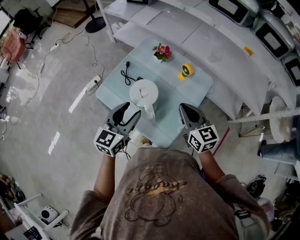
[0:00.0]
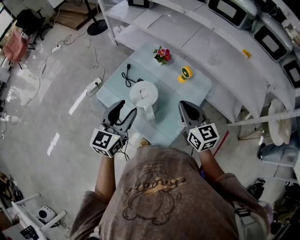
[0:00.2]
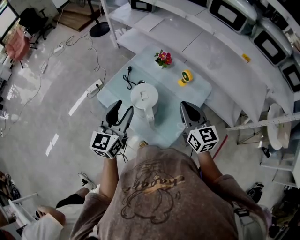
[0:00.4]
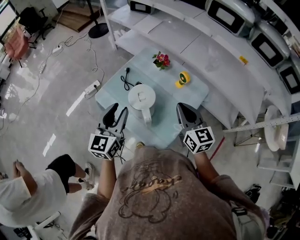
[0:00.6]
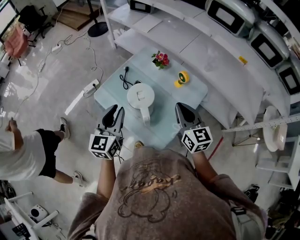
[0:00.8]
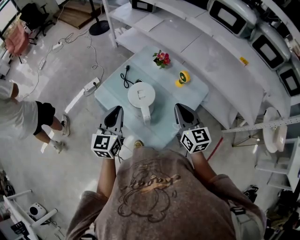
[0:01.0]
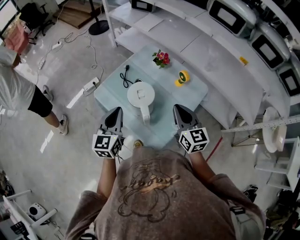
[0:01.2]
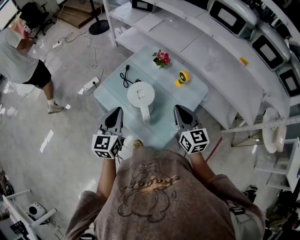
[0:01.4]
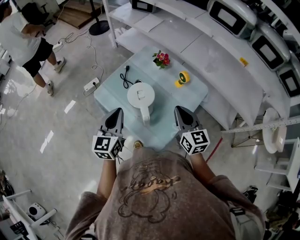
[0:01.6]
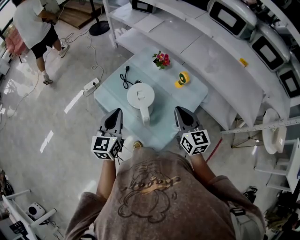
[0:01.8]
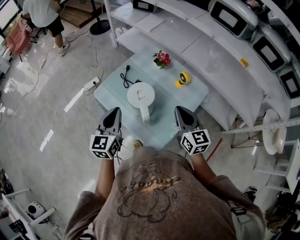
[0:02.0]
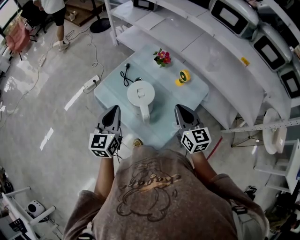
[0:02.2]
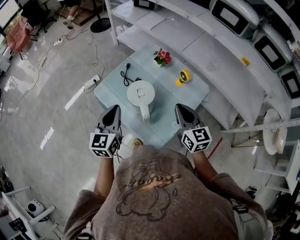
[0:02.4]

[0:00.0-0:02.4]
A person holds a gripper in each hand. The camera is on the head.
0:00.0 to 0:01.2: The left gripper changes place by roughly 5 cm, rotates some 20 degrees, and closes its fingers.
0:01.2 to 0:02.4: Both grippers stay put.

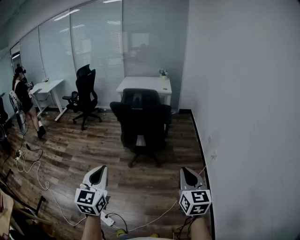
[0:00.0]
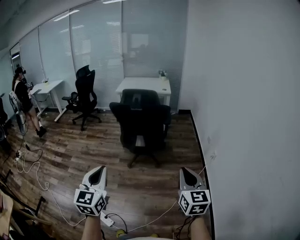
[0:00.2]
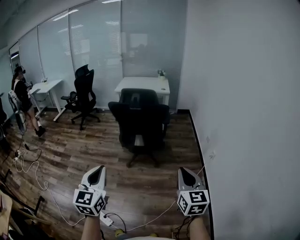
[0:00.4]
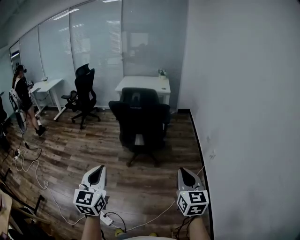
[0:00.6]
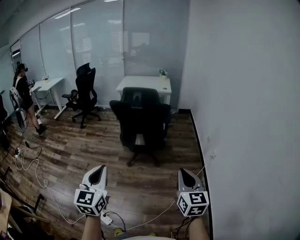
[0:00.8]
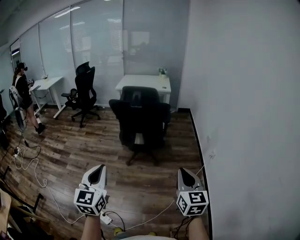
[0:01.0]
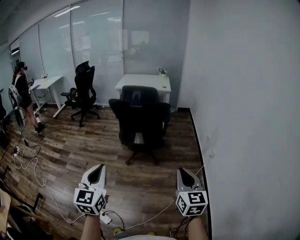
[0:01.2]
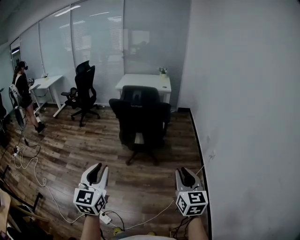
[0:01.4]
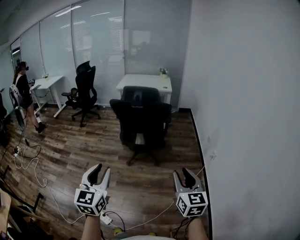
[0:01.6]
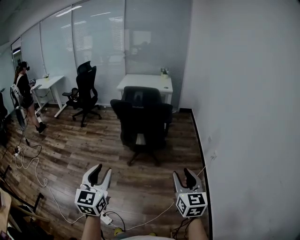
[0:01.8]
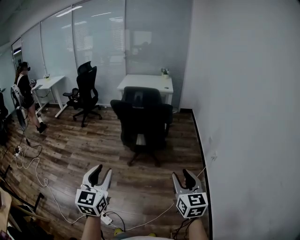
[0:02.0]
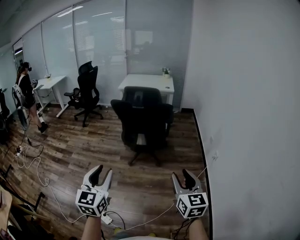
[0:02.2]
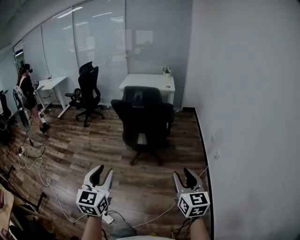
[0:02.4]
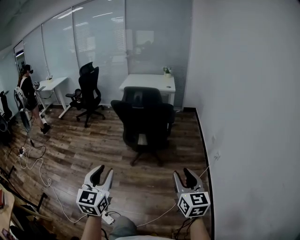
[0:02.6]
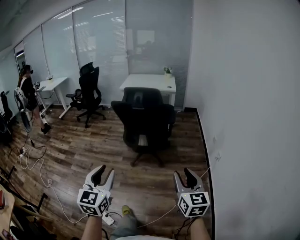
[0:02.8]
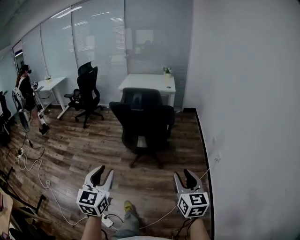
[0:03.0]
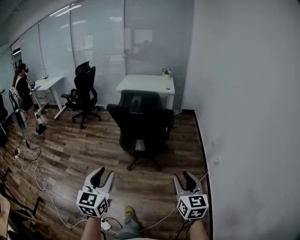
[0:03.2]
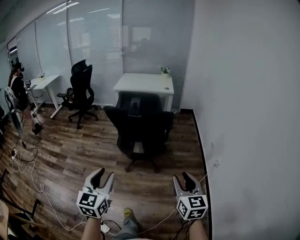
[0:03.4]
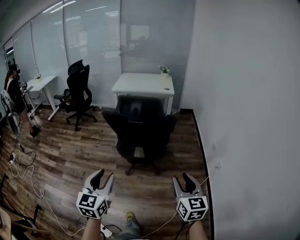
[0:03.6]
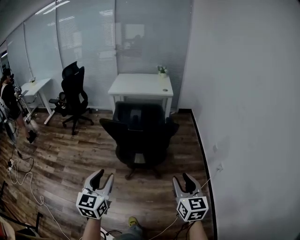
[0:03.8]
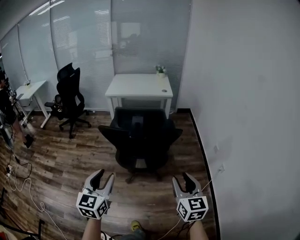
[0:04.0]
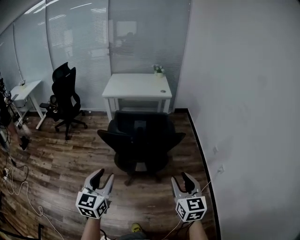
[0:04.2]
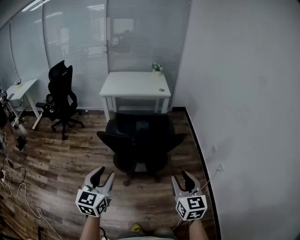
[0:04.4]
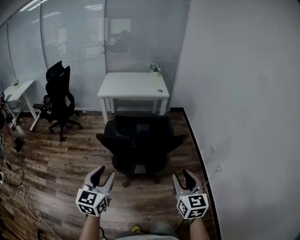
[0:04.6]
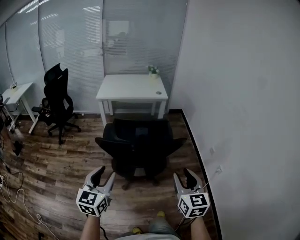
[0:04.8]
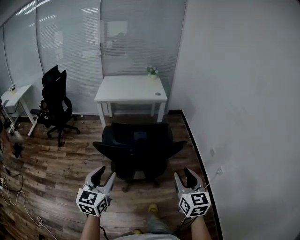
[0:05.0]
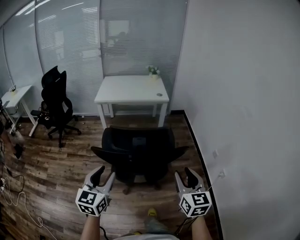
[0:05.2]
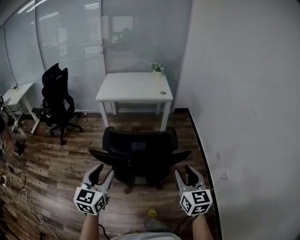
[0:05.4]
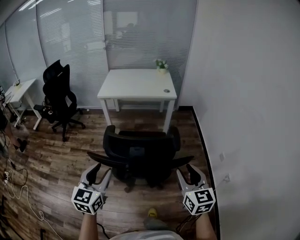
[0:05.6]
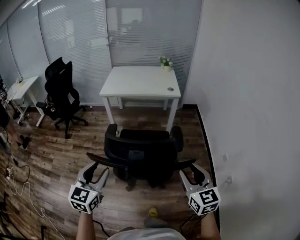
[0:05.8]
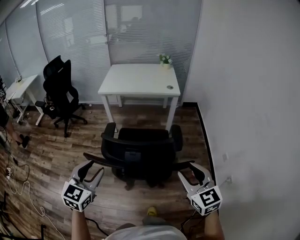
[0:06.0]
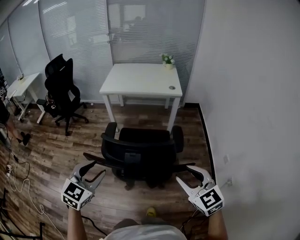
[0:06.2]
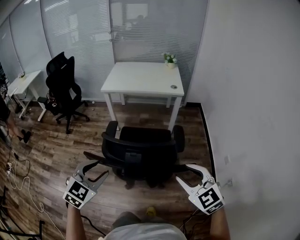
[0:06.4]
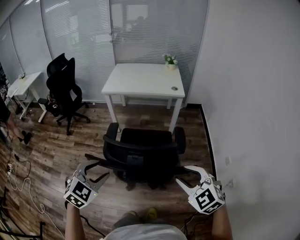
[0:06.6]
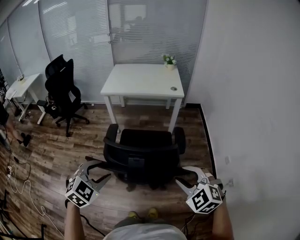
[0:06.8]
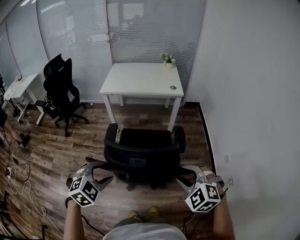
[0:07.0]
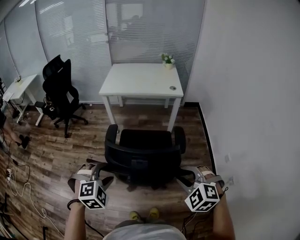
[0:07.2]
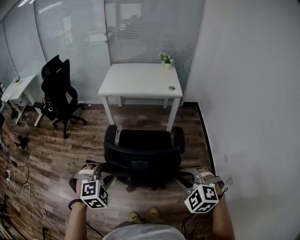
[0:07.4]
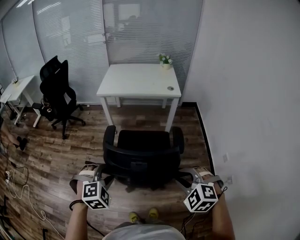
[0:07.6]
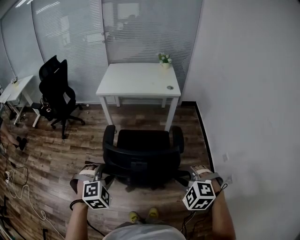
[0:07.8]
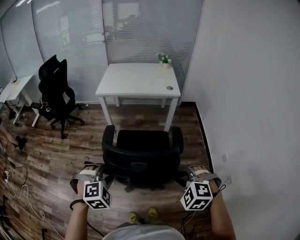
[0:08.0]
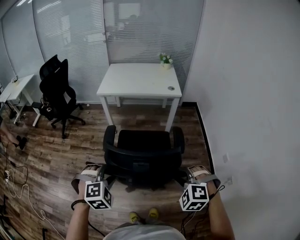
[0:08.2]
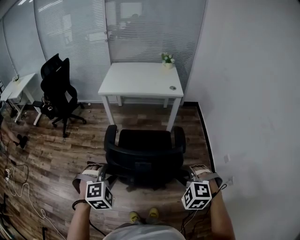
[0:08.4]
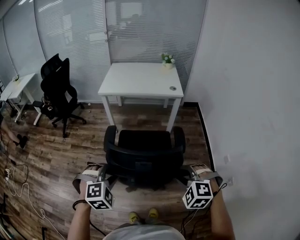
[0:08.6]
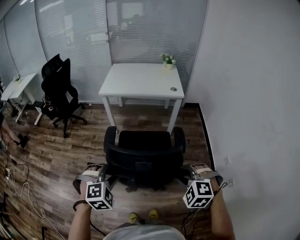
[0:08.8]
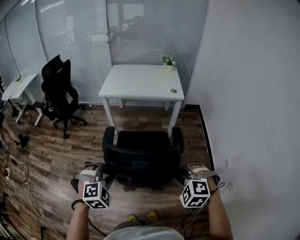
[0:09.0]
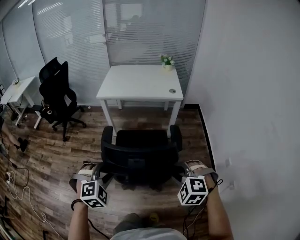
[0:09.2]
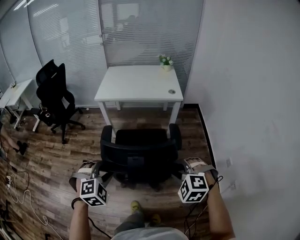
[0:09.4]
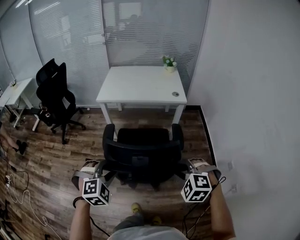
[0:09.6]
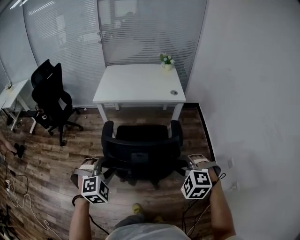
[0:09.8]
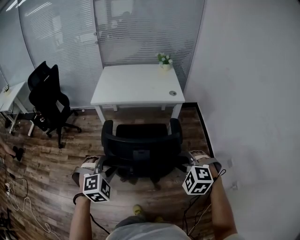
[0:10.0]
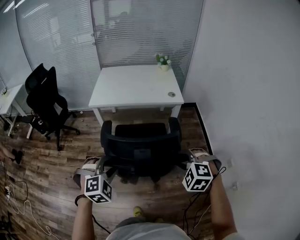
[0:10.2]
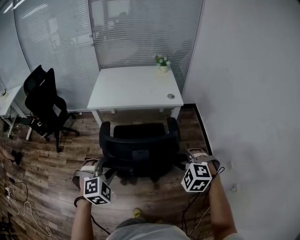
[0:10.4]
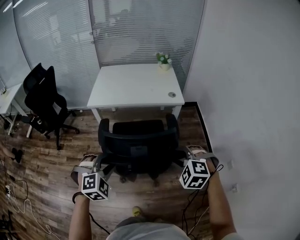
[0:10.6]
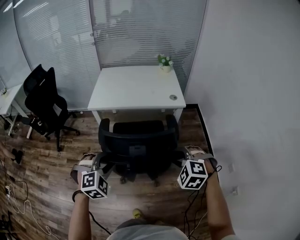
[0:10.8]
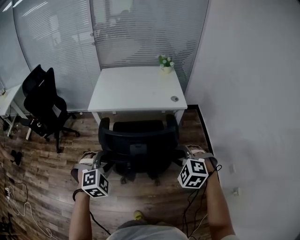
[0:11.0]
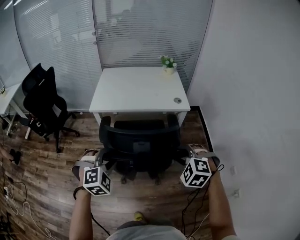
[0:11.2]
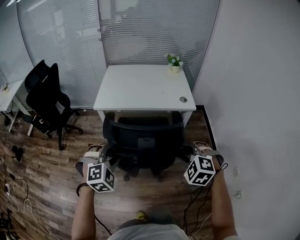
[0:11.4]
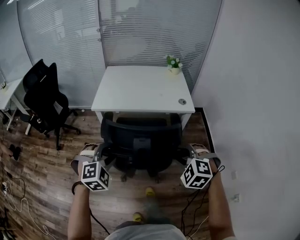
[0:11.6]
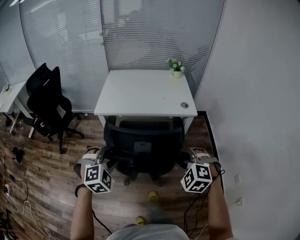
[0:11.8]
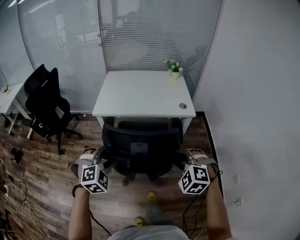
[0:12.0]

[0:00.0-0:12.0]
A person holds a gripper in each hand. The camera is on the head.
0:00.0 to 0:01.6: The left gripper opens up. The right gripper opens up.
0:01.6 to 0:03.0: The two grippers go some 5 cm forward.
0:03.0 to 0:04.4: The two grippers travel together, forward, some 40 cm.
0:04.4 to 0:06.0: The two grippers go some 25 cm forward. The right gripper swivels roughly 20 degrees.
0:06.0 to 0:07.6: The grippers both shift downward by roughly 5 cm. The left gripper twists about 50 degrees clockwise, seen from behind. The right gripper tilts its fingers about 30 degrees downward.
0:07.6 to 0:09.0: The right gripper shifts about 5 cm forward.
0:09.0 to 0:10.4: The grippers both shift forward by roughly 25 cm.
0:10.4 to 0:12.0: The left gripper heads forward, covering about 15 cm; the right gripper heads forward and to the left, covering some 15 cm.

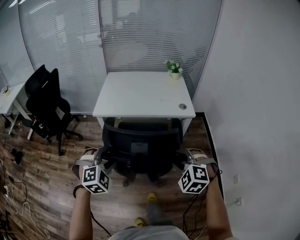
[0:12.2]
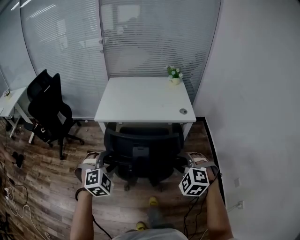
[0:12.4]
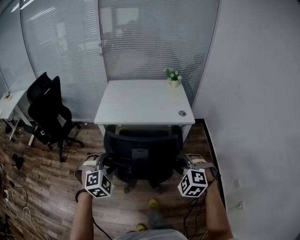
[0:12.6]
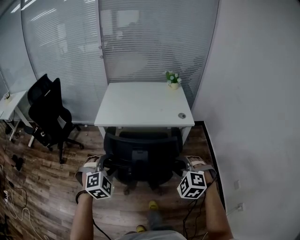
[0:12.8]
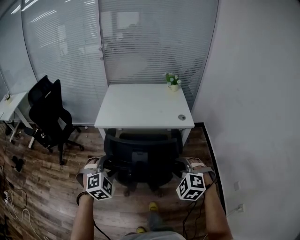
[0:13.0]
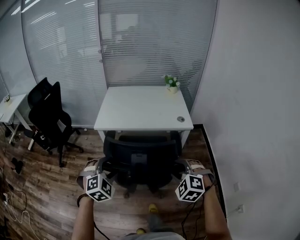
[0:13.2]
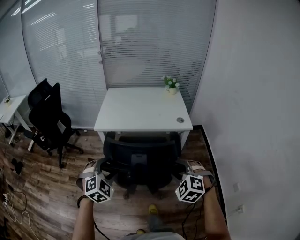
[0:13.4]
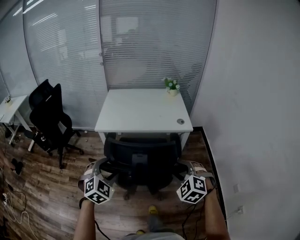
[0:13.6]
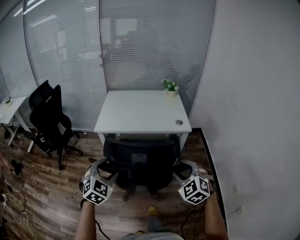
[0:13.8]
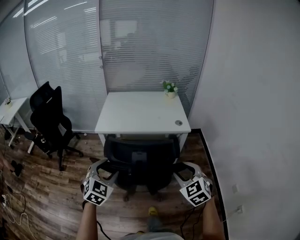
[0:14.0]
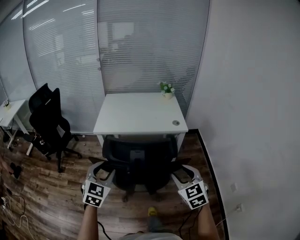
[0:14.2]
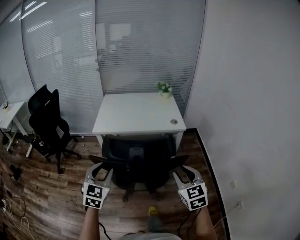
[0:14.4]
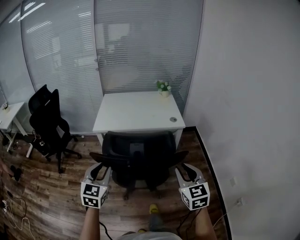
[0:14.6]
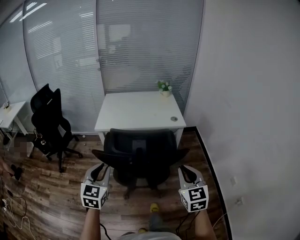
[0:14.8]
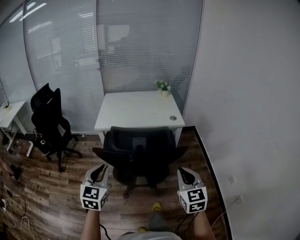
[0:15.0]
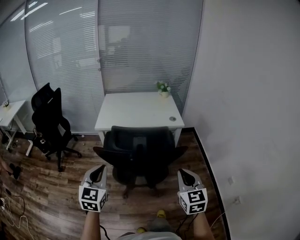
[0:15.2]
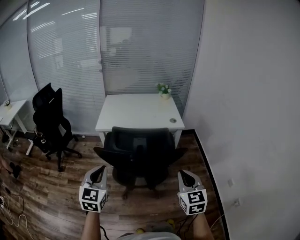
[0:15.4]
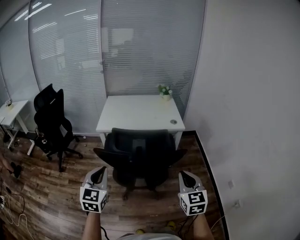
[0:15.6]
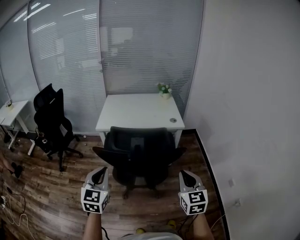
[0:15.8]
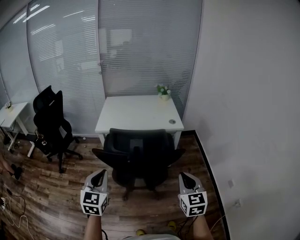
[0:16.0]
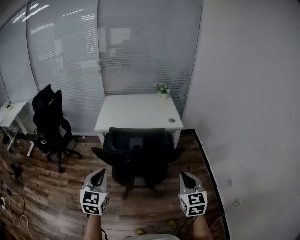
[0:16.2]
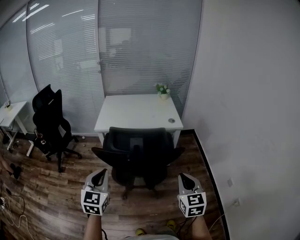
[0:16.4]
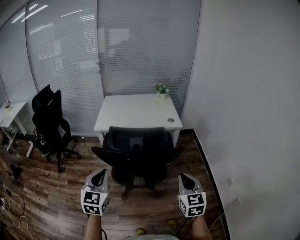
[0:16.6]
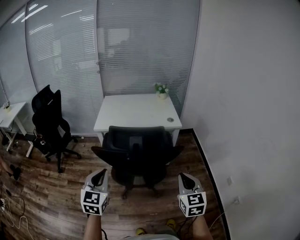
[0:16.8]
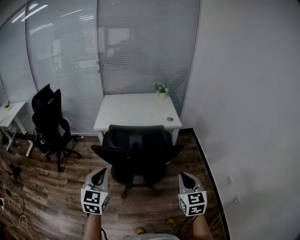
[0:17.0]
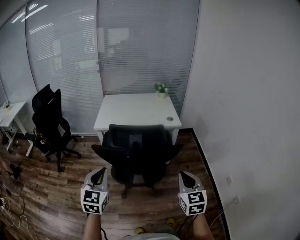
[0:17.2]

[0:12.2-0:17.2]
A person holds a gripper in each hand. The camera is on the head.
0:12.2 to 0:13.8: The left gripper swivels approximately 30 degrees, while the right gripper shifts by approximately 5 cm, and turns by roughly 20 degrees.
0:13.8 to 0:15.6: The right gripper travels backward by about 15 cm, swivels some 40 degrees, and closes its fingers, while the left gripper shifts roughly 15 cm backward and upward, changes its angle by some 30 degrees, and closes up.
0:15.6 to 0:17.2: The grippers stay close to where they were, moving slightly.

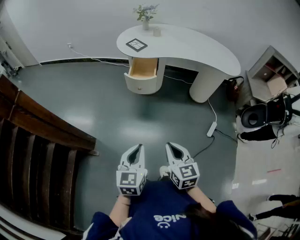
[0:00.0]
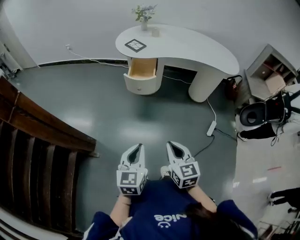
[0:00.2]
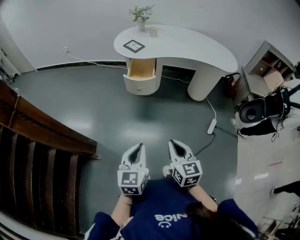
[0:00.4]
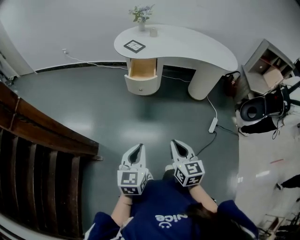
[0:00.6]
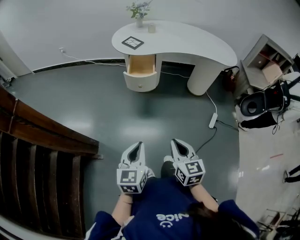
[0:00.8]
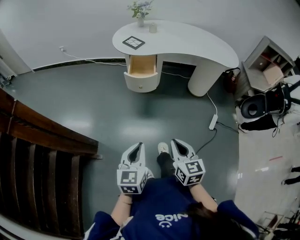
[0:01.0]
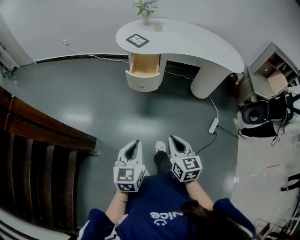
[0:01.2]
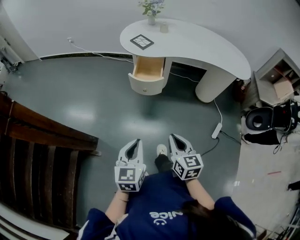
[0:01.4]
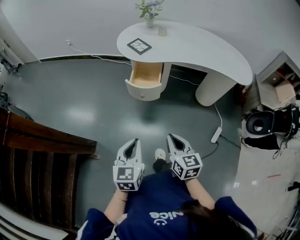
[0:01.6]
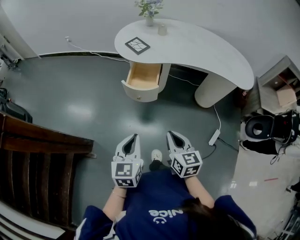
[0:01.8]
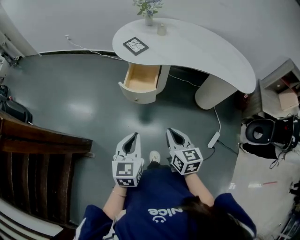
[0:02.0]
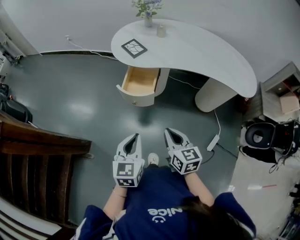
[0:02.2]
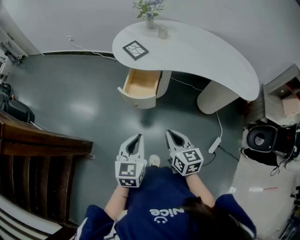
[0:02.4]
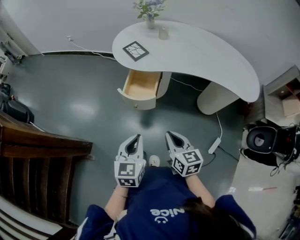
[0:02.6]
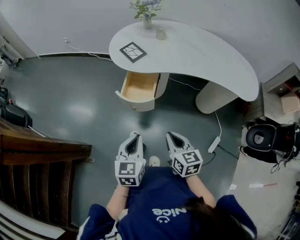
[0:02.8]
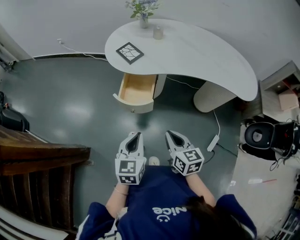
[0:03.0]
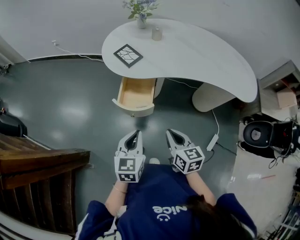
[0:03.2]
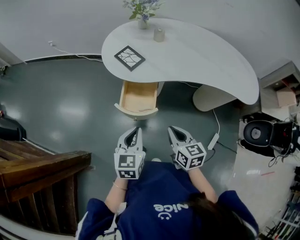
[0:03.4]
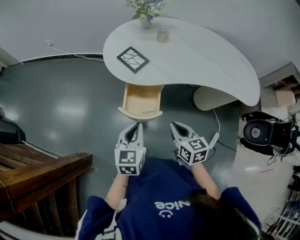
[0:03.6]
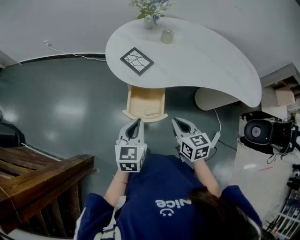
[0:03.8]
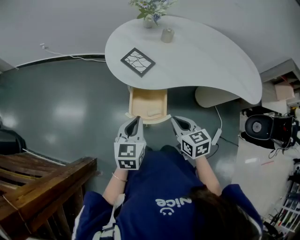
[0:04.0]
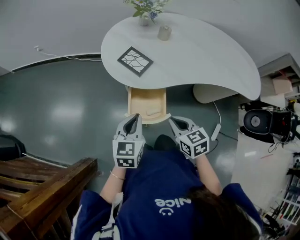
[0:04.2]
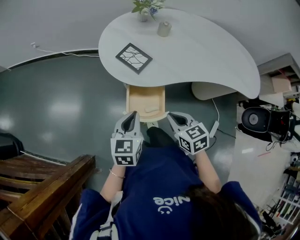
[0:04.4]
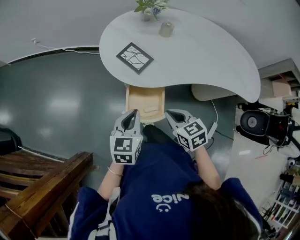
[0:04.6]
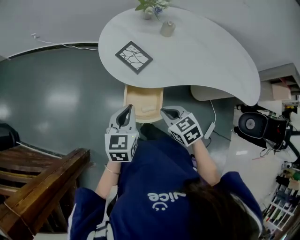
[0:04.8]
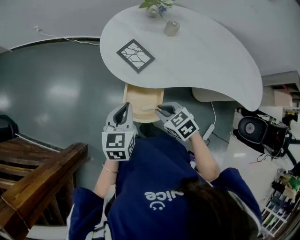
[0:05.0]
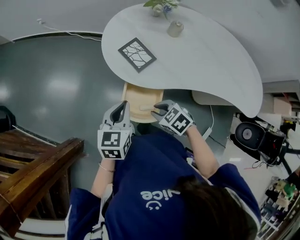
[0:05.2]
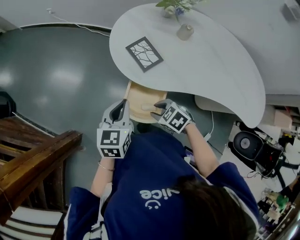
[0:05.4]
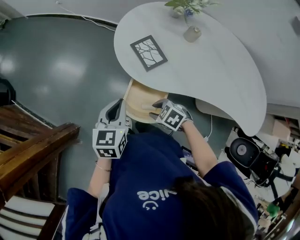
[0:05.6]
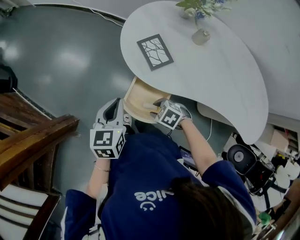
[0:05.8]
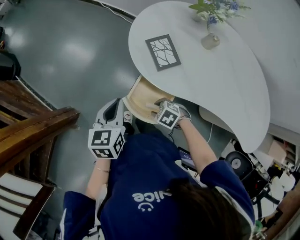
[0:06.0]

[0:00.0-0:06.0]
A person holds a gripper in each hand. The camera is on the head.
0:00.0 to 0:01.6: The grippers both shift forward by about 15 cm.
0:01.6 to 0:03.0: The two grippers go approximately 20 cm forward and to the right.
0:03.0 to 0:04.4: The two grippers go approximately 25 cm forward and to the left.
0:04.4 to 0:06.0: The right gripper goes roughly 15 cm downward, rotates about 70 degrees, and opens its fingers, while the left gripper moves approximately 5 cm, and changes its angle by some 30 degrees.